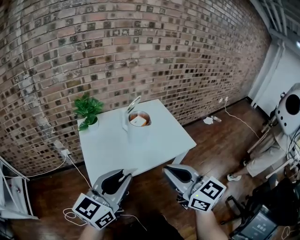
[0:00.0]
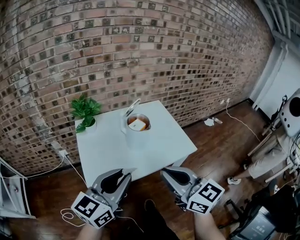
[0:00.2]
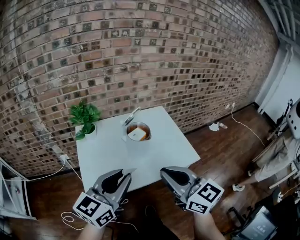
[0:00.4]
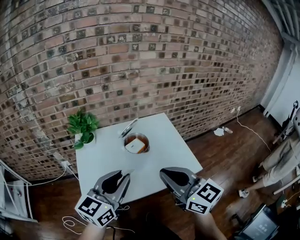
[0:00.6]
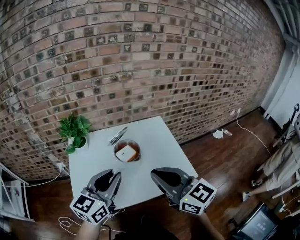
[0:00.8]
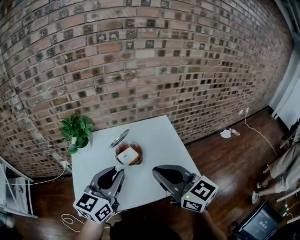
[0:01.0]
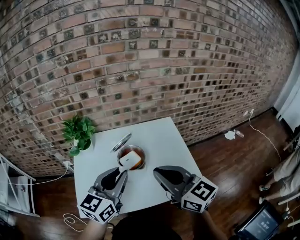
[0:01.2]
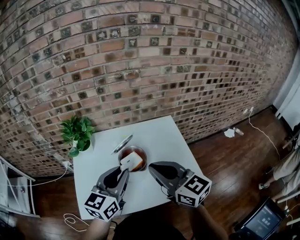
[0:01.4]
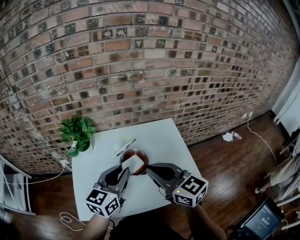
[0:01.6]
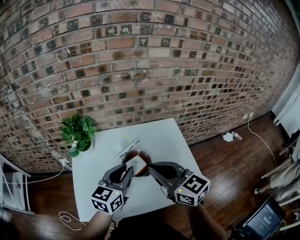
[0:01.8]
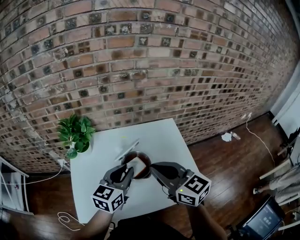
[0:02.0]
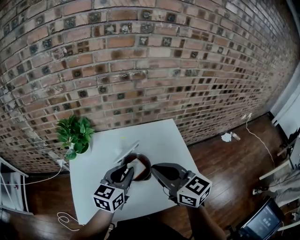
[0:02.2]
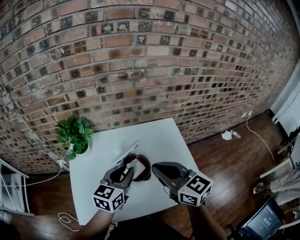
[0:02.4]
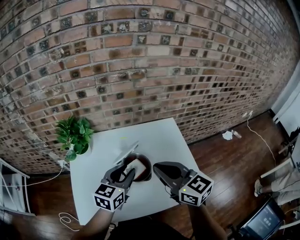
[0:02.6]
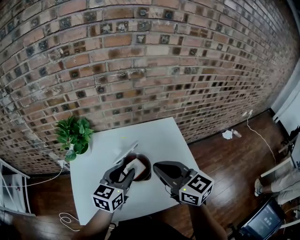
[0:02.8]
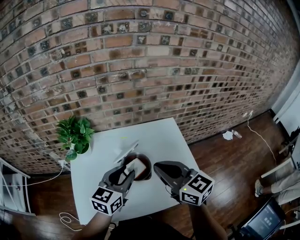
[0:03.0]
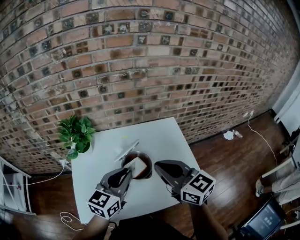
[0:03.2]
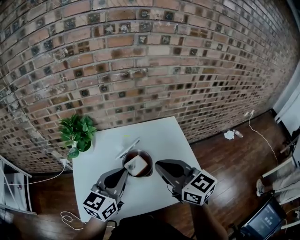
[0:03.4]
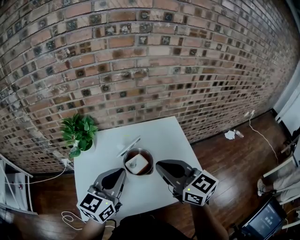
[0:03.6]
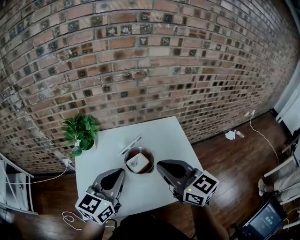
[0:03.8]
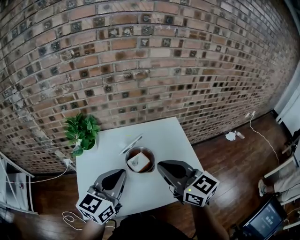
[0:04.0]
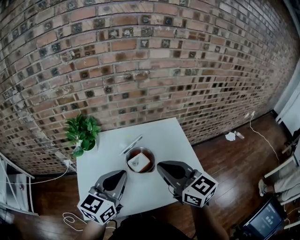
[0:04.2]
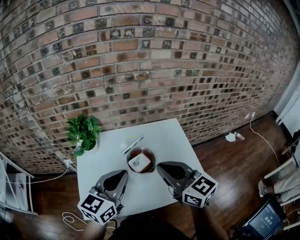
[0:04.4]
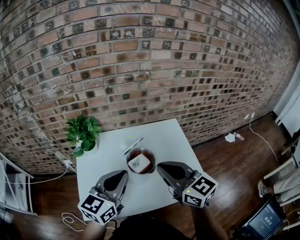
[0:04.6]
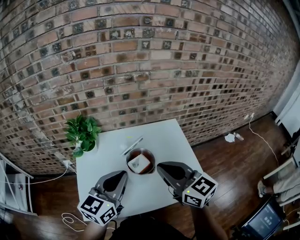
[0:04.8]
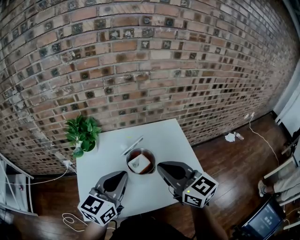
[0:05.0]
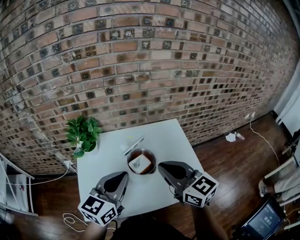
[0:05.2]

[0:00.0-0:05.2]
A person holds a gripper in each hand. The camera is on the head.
0:00.0 to 0:01.8: The grippers both shift forward by some 30 cm. The left gripper changes its angle by some 20 degrees.
0:01.8 to 0:03.4: The grippers move only a little.
0:03.4 to 0:05.2: The grippers stay close to where they were, moving slightly.

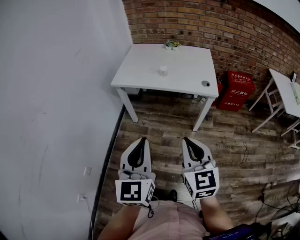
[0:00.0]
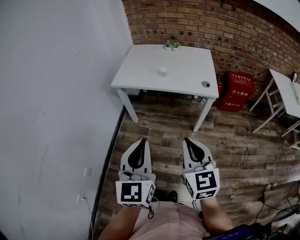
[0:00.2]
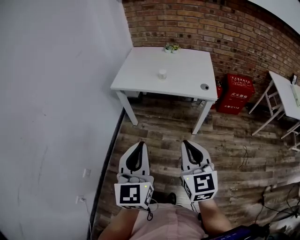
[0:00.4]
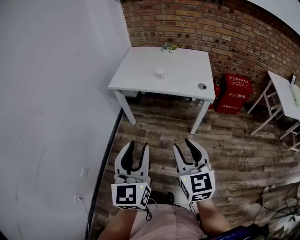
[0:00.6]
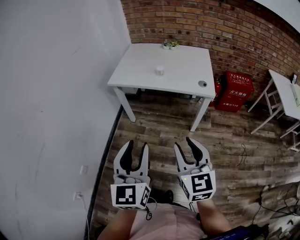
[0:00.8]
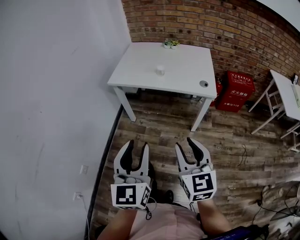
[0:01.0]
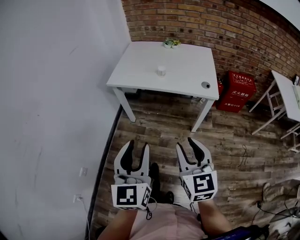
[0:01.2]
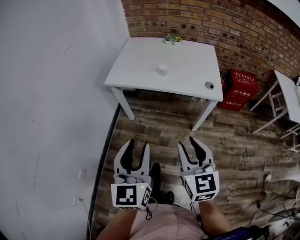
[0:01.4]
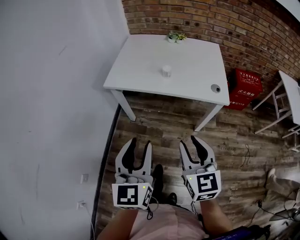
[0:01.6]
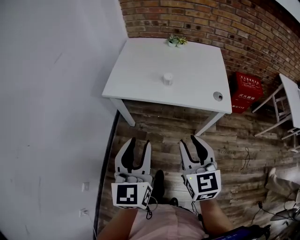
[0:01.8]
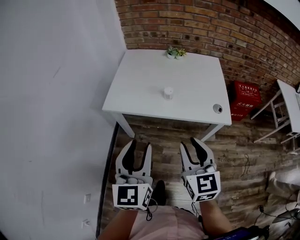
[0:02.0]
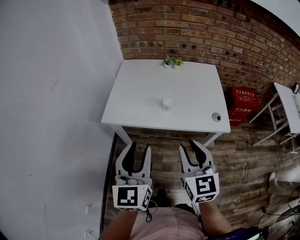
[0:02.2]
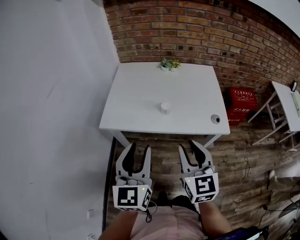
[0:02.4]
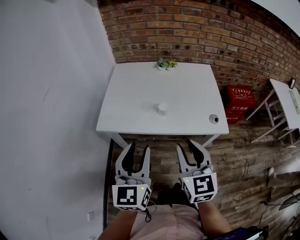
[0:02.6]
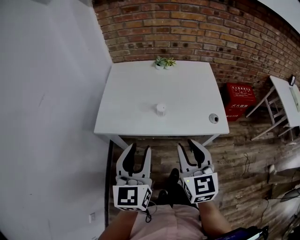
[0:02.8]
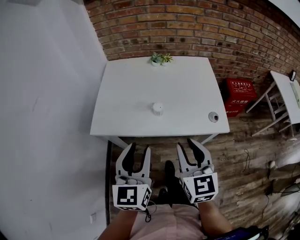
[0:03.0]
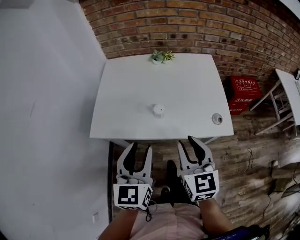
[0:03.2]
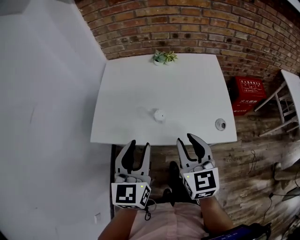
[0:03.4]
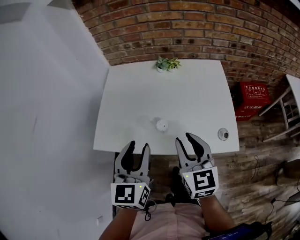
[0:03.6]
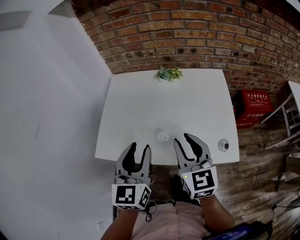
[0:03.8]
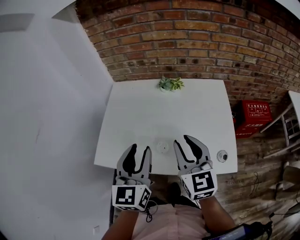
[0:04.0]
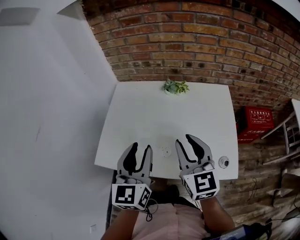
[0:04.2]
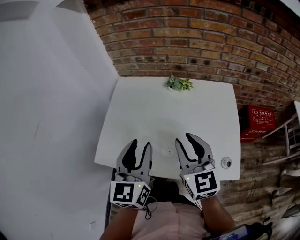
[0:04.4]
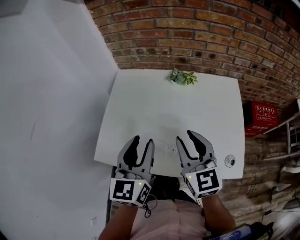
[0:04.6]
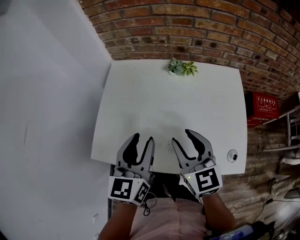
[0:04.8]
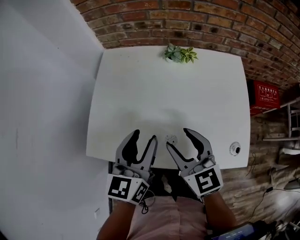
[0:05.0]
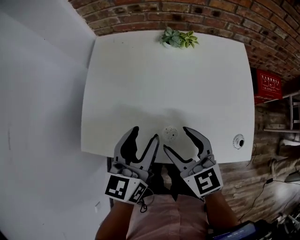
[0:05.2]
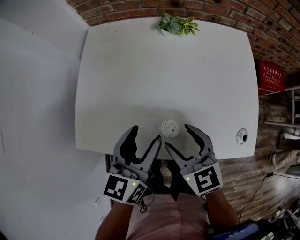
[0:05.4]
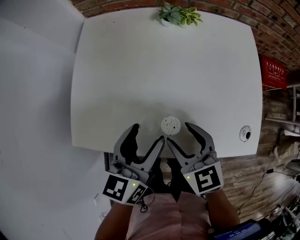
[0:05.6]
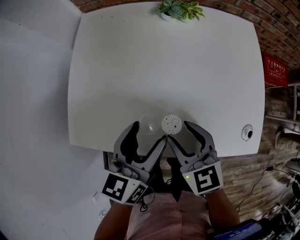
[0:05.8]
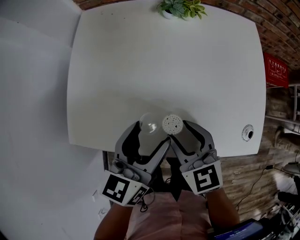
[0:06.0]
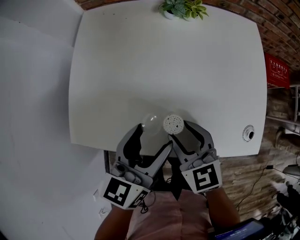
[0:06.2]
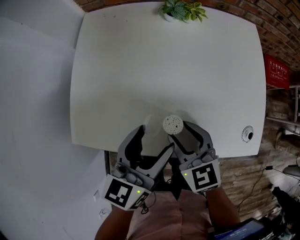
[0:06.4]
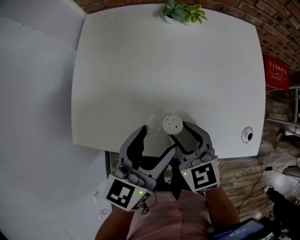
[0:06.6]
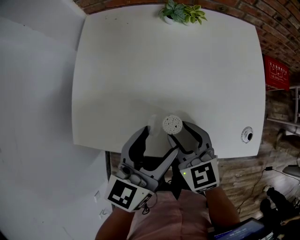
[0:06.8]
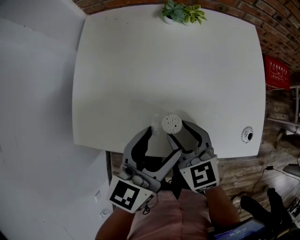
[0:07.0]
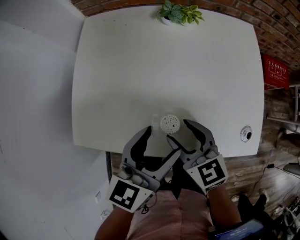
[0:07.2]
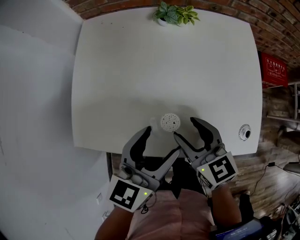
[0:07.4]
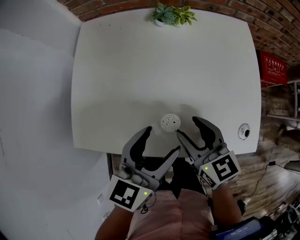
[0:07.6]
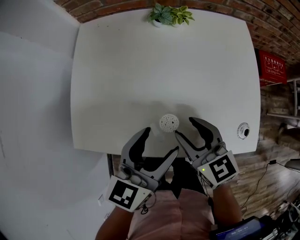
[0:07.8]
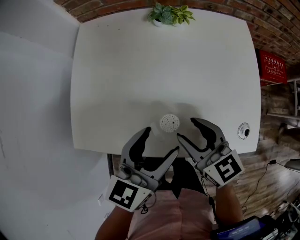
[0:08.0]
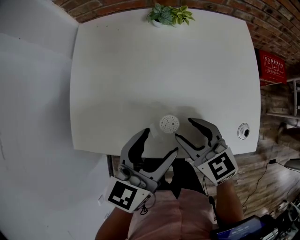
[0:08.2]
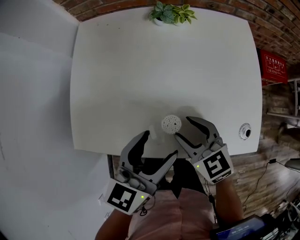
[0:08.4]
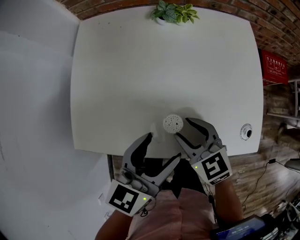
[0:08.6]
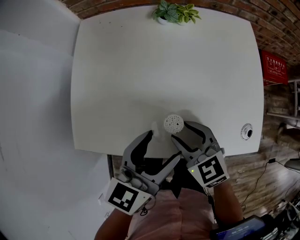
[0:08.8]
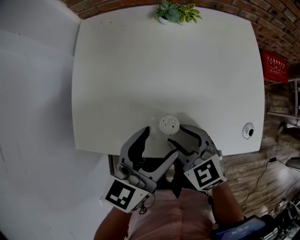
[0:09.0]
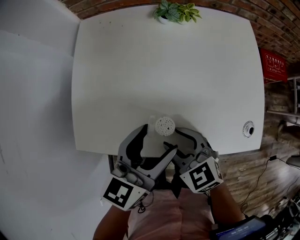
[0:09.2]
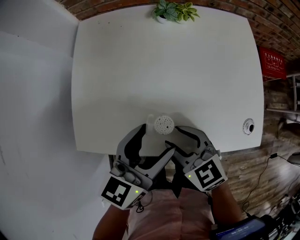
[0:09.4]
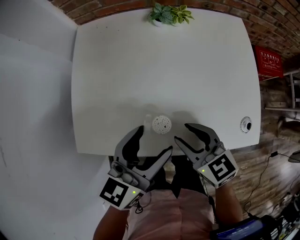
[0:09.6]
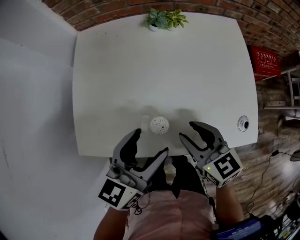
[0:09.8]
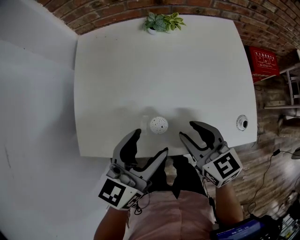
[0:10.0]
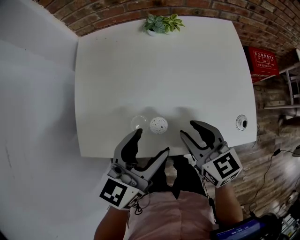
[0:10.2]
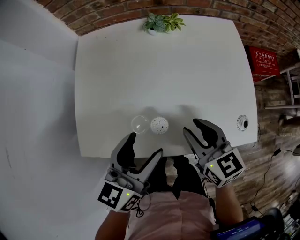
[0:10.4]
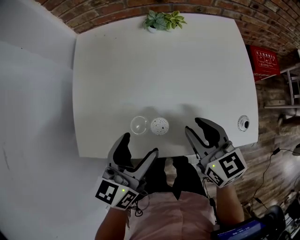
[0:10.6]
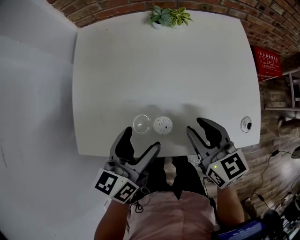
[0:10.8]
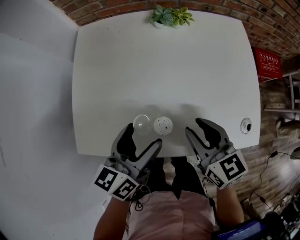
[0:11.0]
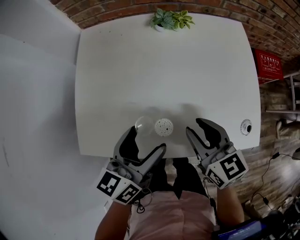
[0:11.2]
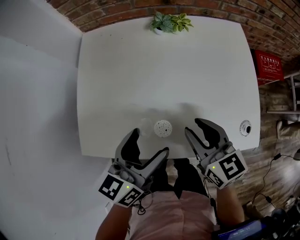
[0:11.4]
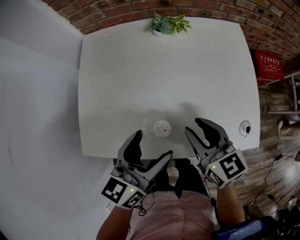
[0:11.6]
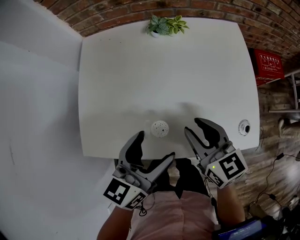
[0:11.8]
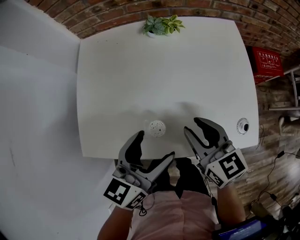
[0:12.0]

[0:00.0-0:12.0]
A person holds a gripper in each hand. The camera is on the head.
0:00.0 to 0:01.6: Both grippers travel together forward, some 15 cm. The right gripper opens up; the left gripper opens.
0:01.6 to 0:03.0: Both grippers travel together forward, roughly 20 cm.
0:03.0 to 0:04.4: Both grippers move forward, about 20 cm.
0:04.4 to 0:06.0: Both grippers travel together downward, about 20 cm. The left gripper changes its angle by about 30 degrees, and opens its fingers; the right gripper changes its angle by about 30 degrees.
0:06.0 to 0:07.6: The right gripper shifts by about 5 cm, while the left gripper moves roughly 5 cm.
0:07.6 to 0:09.0: The right gripper travels to the left by roughly 5 cm, and swivels roughly 20 degrees.
0:09.0 to 0:10.4: The right gripper shifts about 10 cm to the right and upward, and swivels approximately 30 degrees.
0:10.4 to 0:12.0: There are only small adjustments of the grippers.

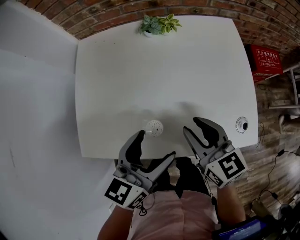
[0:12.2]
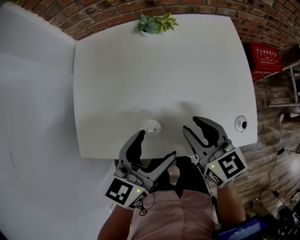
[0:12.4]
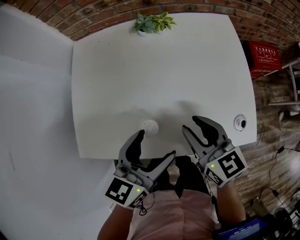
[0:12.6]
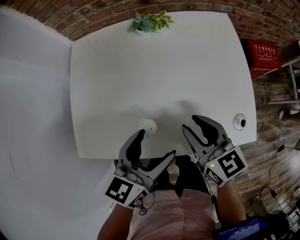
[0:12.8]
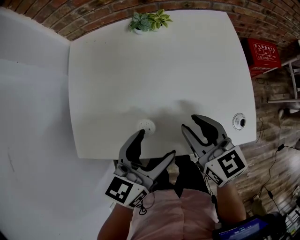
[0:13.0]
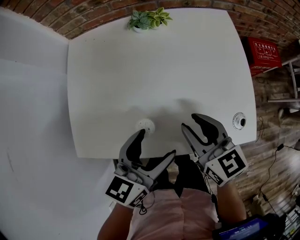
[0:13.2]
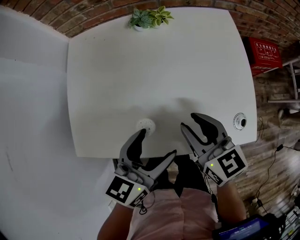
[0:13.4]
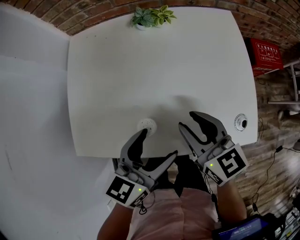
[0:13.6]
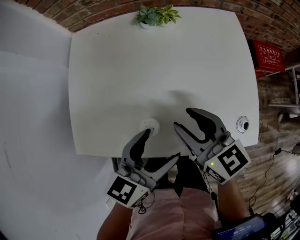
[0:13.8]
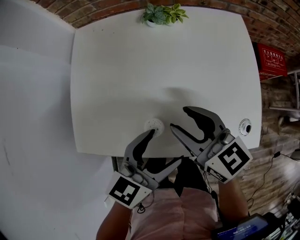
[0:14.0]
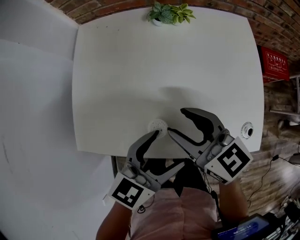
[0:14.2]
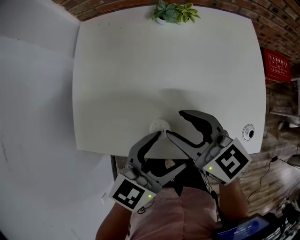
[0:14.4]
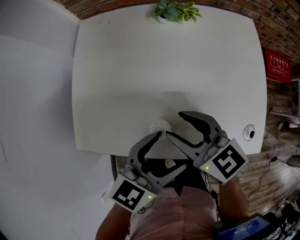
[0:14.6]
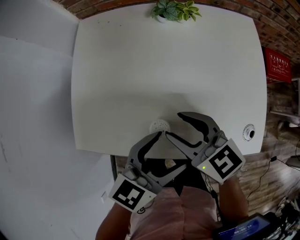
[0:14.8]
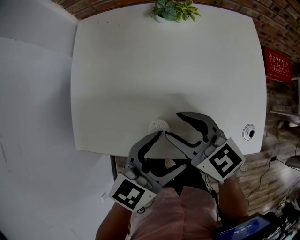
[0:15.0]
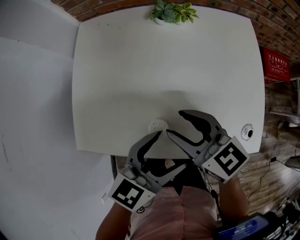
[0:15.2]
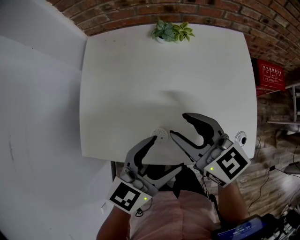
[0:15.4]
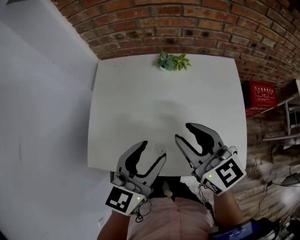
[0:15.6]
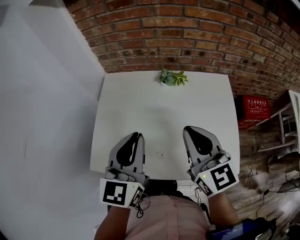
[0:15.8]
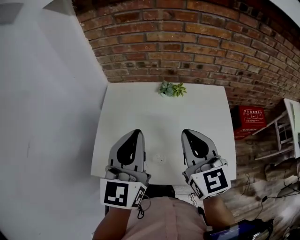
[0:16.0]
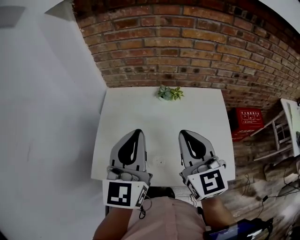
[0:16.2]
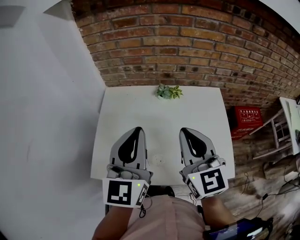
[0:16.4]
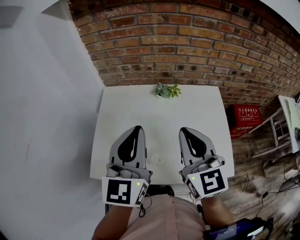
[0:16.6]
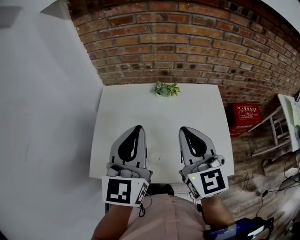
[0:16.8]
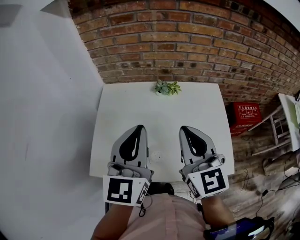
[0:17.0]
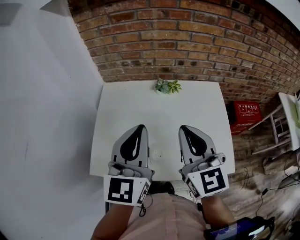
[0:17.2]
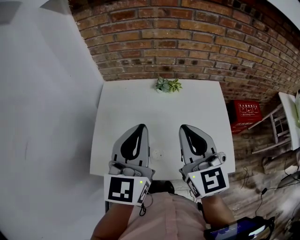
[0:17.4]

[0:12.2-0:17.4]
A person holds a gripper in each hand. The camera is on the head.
0:12.2 to 0:14.0: The grippers move only a little.
0:14.0 to 0:15.6: The grippers both shift upward by roughly 10 cm. The left gripper changes its angle by roughly 20 degrees.
0:15.6 to 0:17.4: The grippers both shift upward by approximately 10 cm. The right gripper turns by approximately 20 degrees, and closes up, while the left gripper rotates about 20 degrees, and closes up.

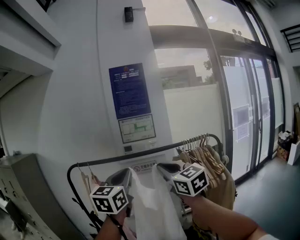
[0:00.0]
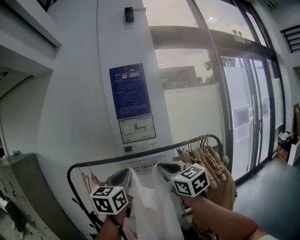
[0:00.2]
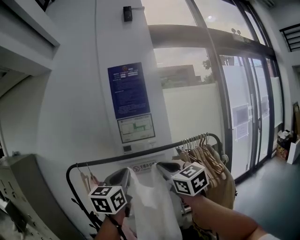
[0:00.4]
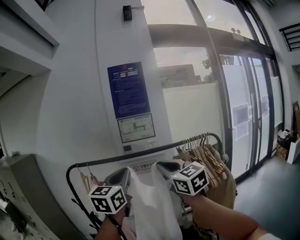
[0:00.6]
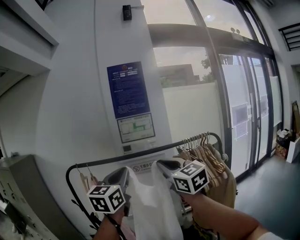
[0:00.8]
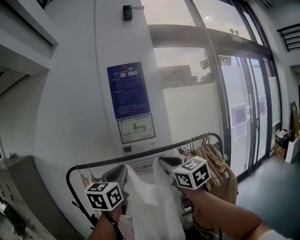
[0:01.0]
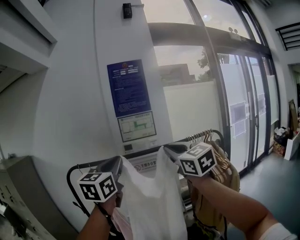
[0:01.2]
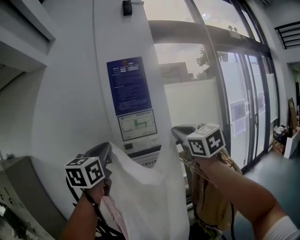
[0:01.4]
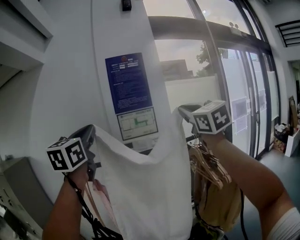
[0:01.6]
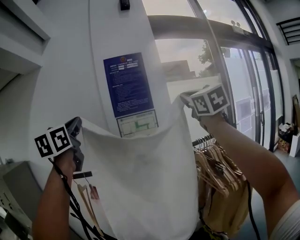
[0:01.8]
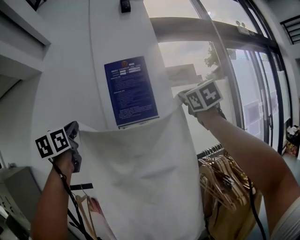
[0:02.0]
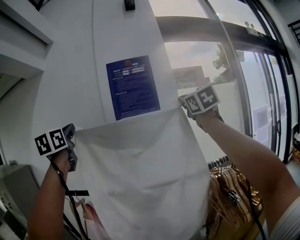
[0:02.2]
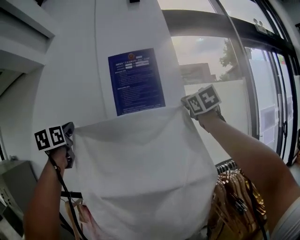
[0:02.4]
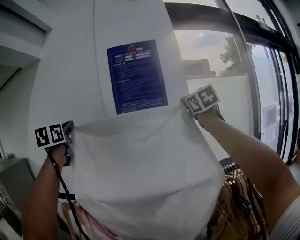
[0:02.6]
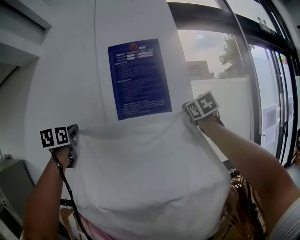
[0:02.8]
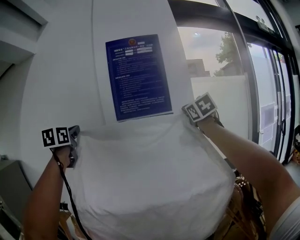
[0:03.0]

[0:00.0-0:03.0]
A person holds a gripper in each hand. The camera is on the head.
0:00.0 to 0:01.6: The right gripper heads upward, forward and to the right, covering about 20 cm, and changes its angle by roughly 20 degrees; the left gripper goes roughly 25 cm upward, to the left and forward.
0:01.6 to 0:03.0: The pair of grippers is taken forward, roughly 40 cm.
